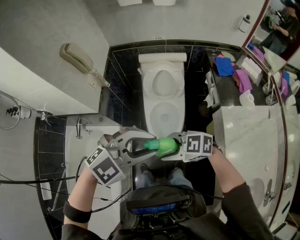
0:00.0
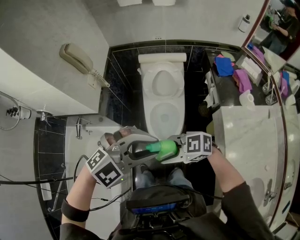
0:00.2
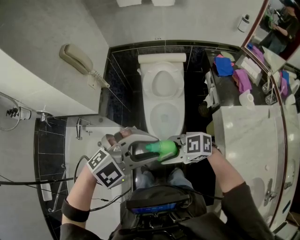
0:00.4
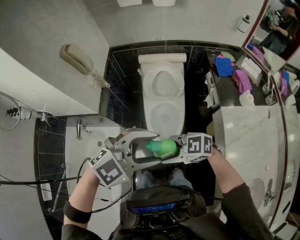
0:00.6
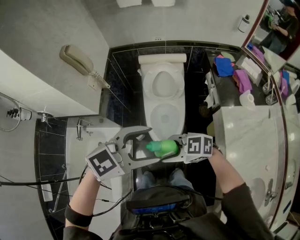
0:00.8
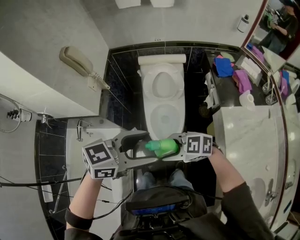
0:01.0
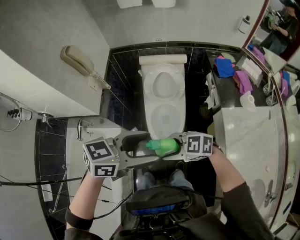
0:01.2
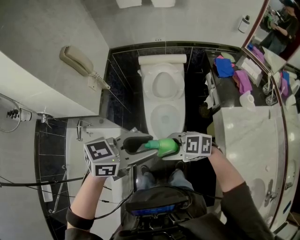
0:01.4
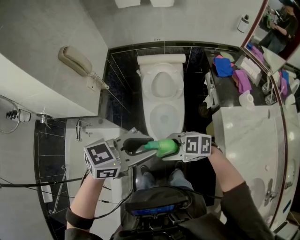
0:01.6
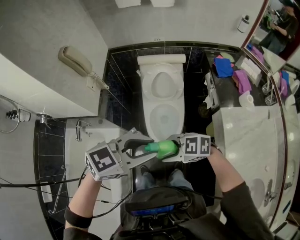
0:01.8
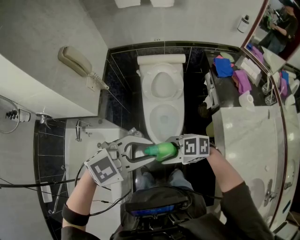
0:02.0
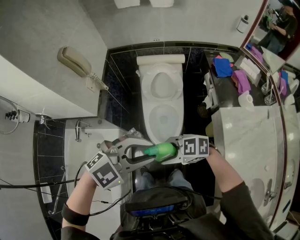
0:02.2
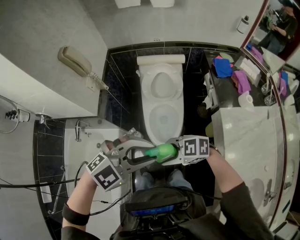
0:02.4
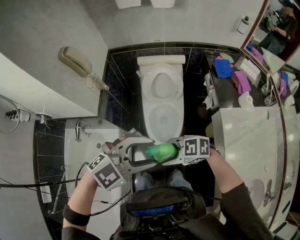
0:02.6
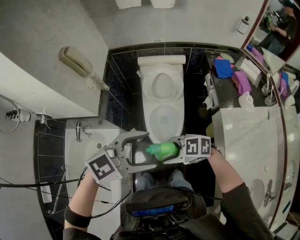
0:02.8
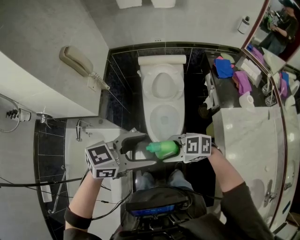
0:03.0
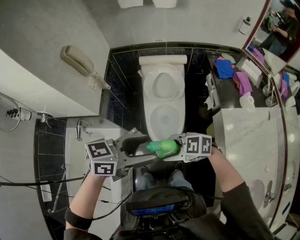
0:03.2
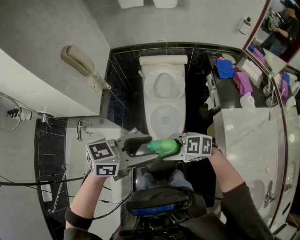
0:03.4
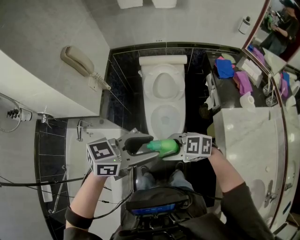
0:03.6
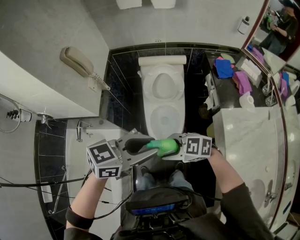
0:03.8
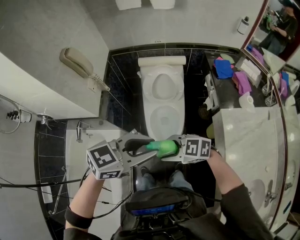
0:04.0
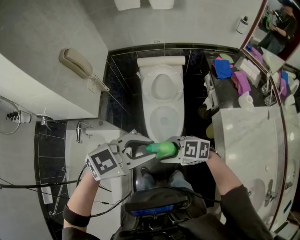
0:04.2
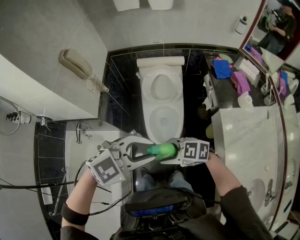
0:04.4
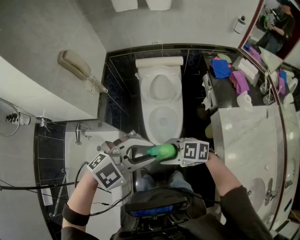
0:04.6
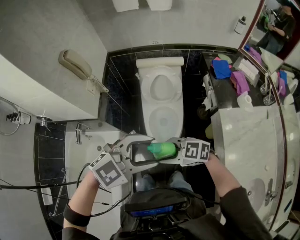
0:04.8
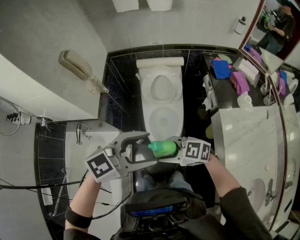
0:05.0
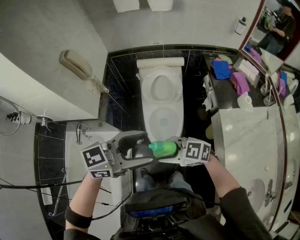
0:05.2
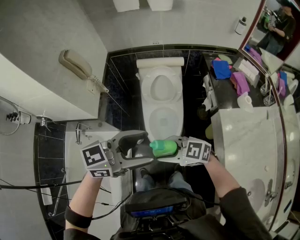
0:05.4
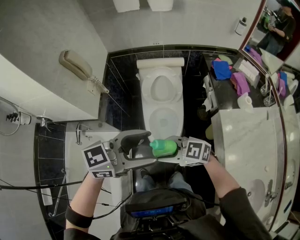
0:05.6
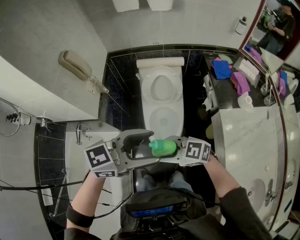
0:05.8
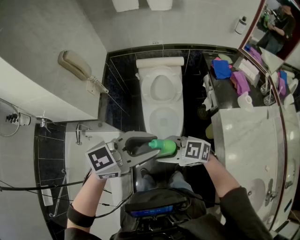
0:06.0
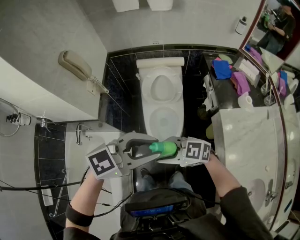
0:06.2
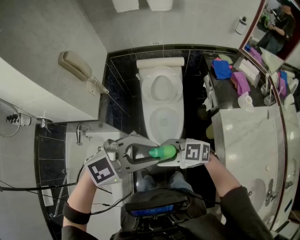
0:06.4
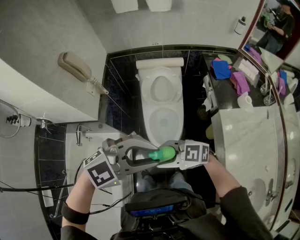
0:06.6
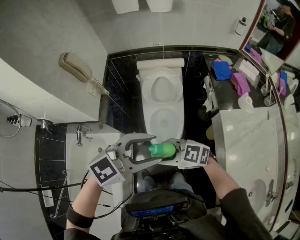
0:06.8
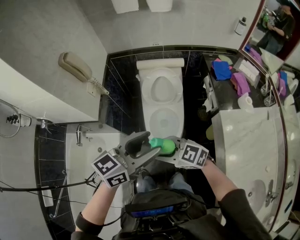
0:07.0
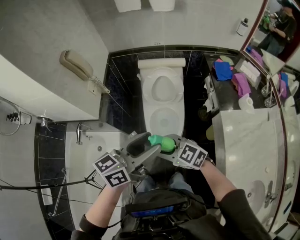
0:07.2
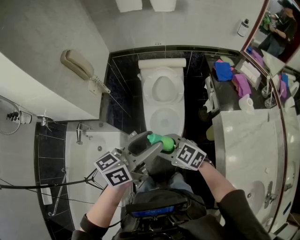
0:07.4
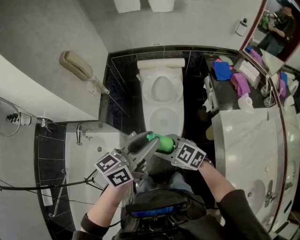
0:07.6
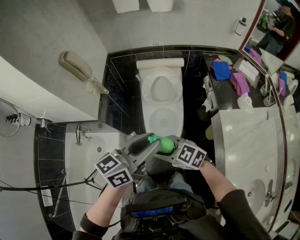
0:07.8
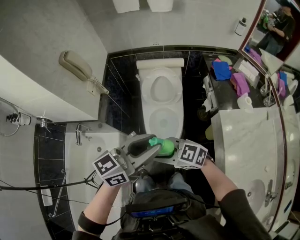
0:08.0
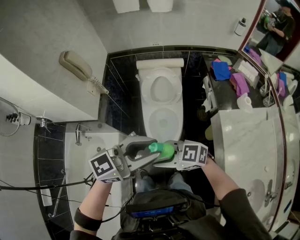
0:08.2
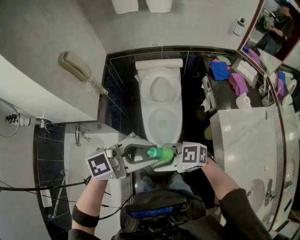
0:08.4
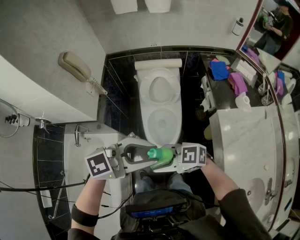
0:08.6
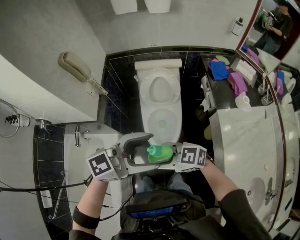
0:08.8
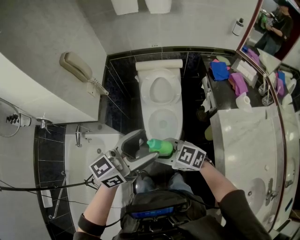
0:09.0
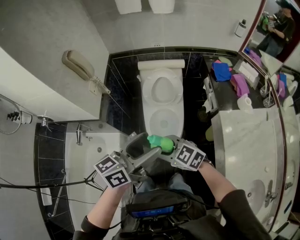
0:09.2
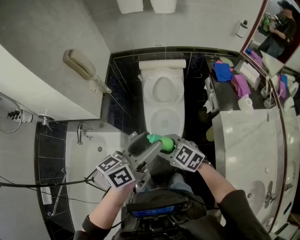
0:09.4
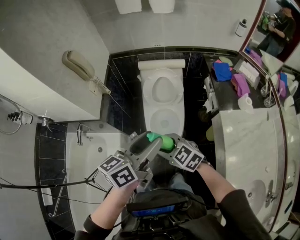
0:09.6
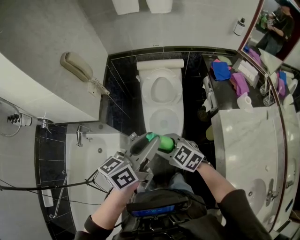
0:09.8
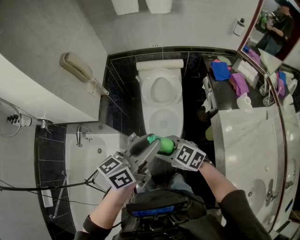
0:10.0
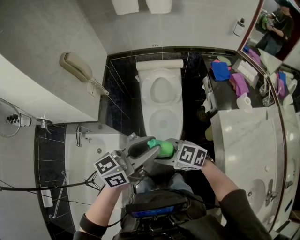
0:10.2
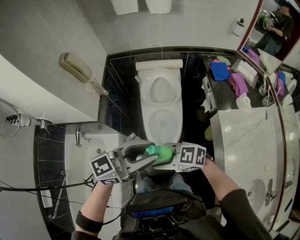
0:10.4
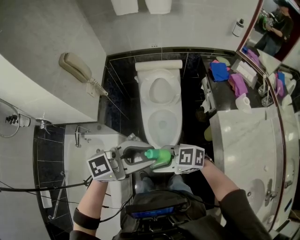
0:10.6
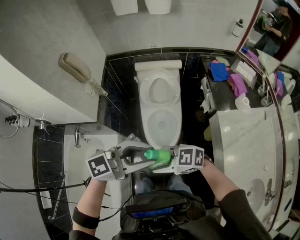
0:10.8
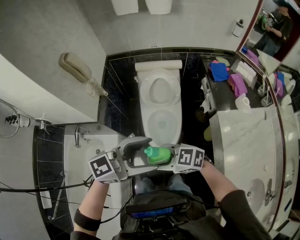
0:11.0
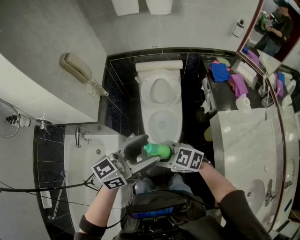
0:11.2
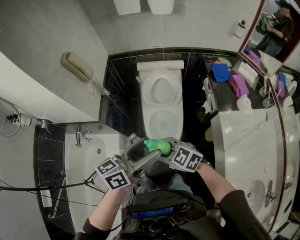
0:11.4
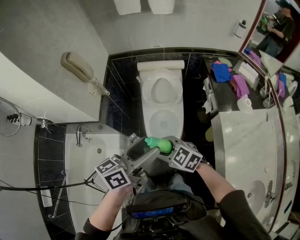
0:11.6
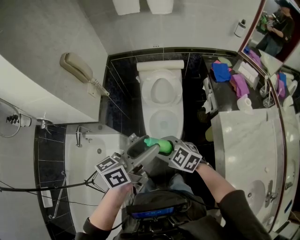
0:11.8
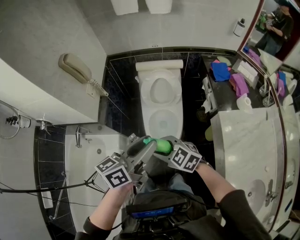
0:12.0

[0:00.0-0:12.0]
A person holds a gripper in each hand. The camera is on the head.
0:00.0 to 0:01.6: The left gripper rolls counterclockwise, seen from behind, by about 40 degrees, and opens and closes again.
0:01.6 to 0:03.0: The left gripper opens.
0:03.0 to 0:04.4: The left gripper changes its angle by about 40 degrees, and closes up.
0:04.4 to 0:06.0: The left gripper swivels roughly 30 degrees, and opens and closes again.
0:06.0 to 0:07.6: The left gripper swivels about 40 degrees.
0:07.6 to 0:09.0: The left gripper opens.
0:09.0 to 0:10.4: The left gripper closes up.
0:10.4 to 0:12.0: The right gripper ends up roughly 10 cm from where it was, and changes its angle by some 30 degrees, while the left gripper changes place by some 5 cm, turns by some 40 degrees, and opens, then closes once more.

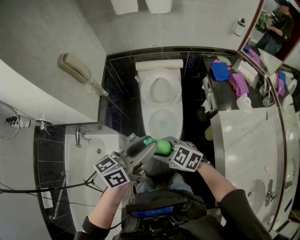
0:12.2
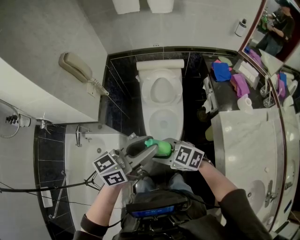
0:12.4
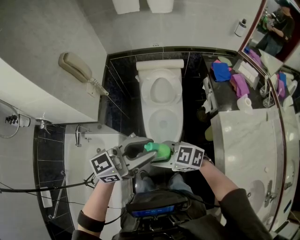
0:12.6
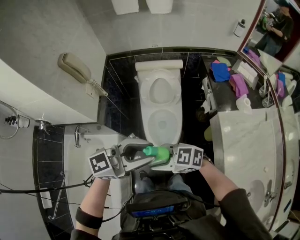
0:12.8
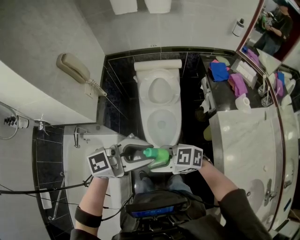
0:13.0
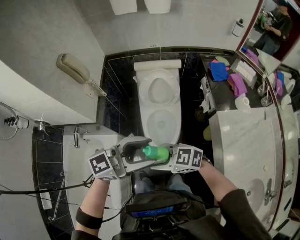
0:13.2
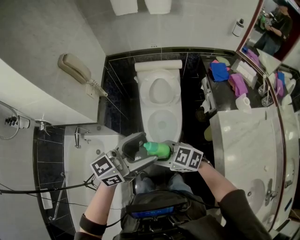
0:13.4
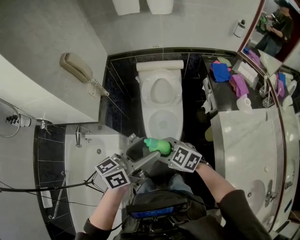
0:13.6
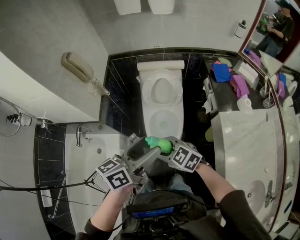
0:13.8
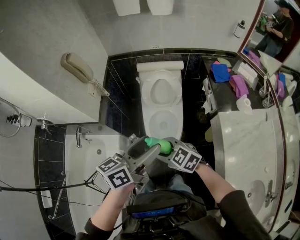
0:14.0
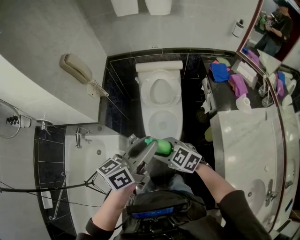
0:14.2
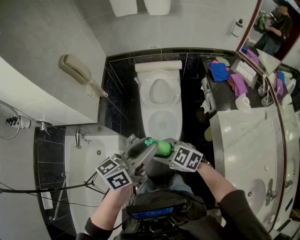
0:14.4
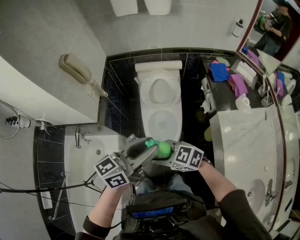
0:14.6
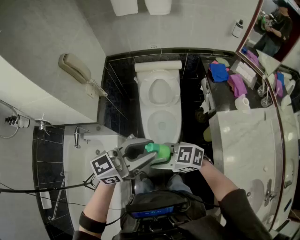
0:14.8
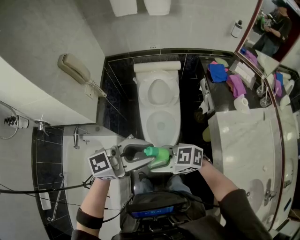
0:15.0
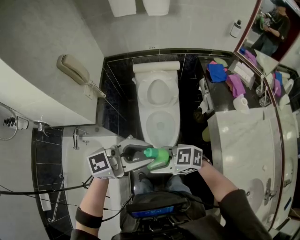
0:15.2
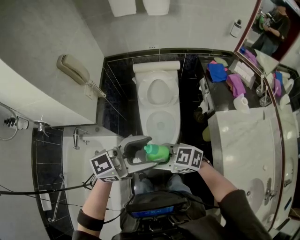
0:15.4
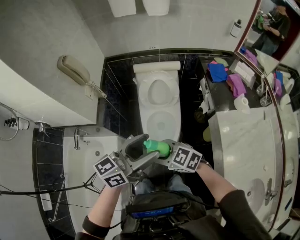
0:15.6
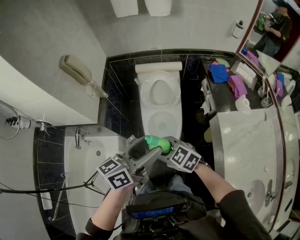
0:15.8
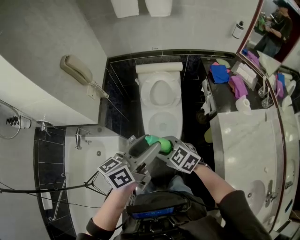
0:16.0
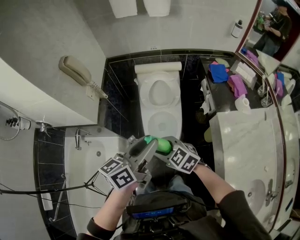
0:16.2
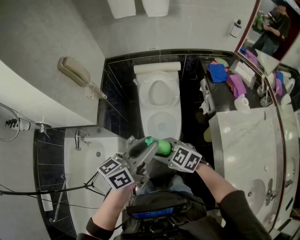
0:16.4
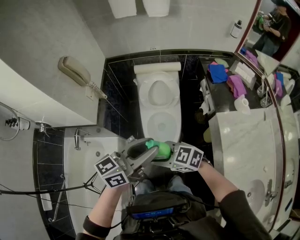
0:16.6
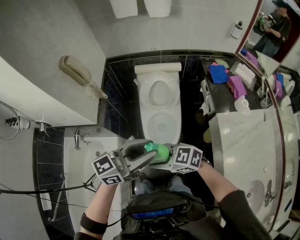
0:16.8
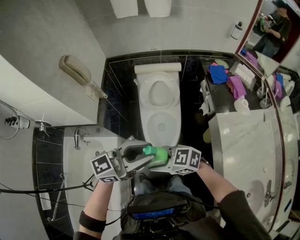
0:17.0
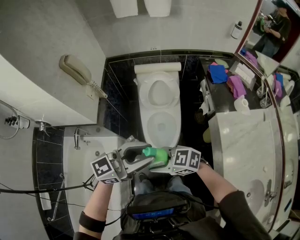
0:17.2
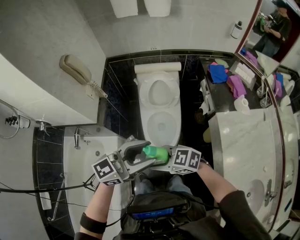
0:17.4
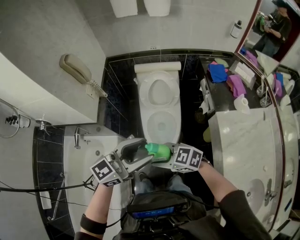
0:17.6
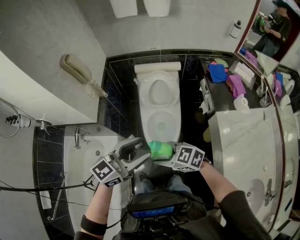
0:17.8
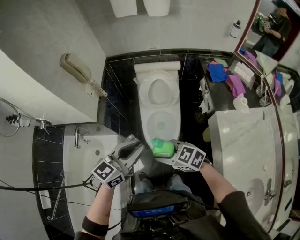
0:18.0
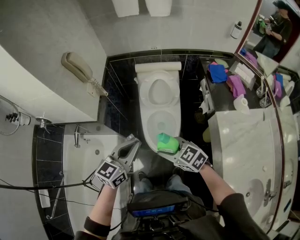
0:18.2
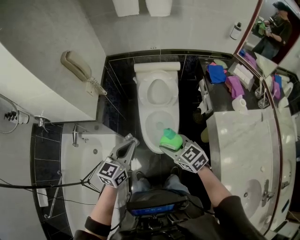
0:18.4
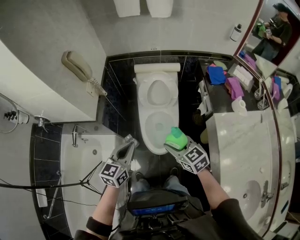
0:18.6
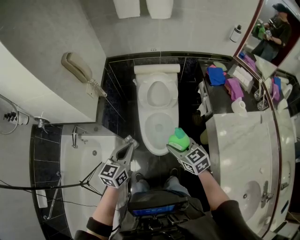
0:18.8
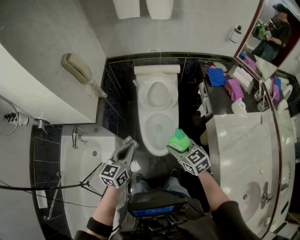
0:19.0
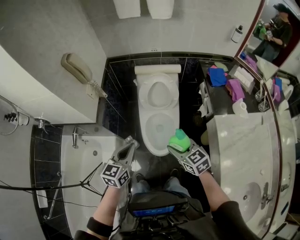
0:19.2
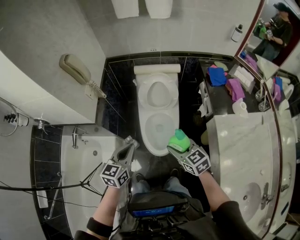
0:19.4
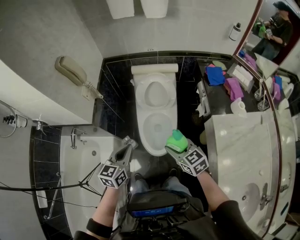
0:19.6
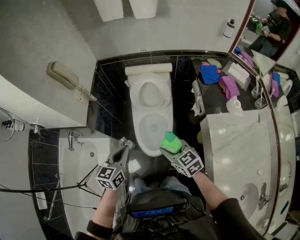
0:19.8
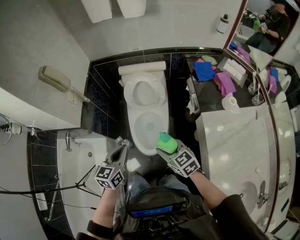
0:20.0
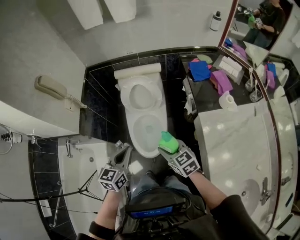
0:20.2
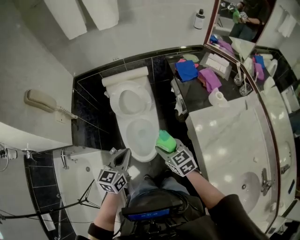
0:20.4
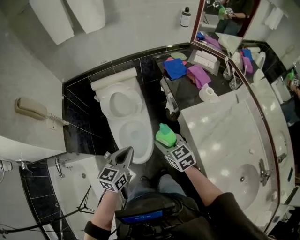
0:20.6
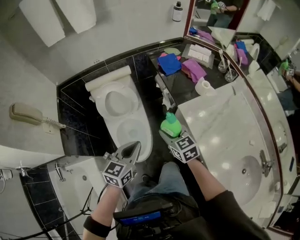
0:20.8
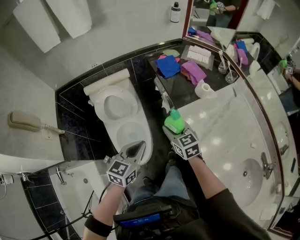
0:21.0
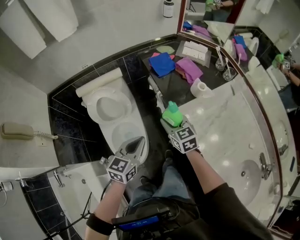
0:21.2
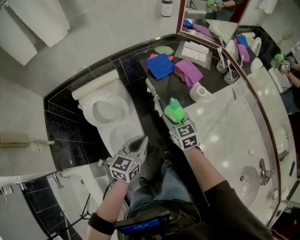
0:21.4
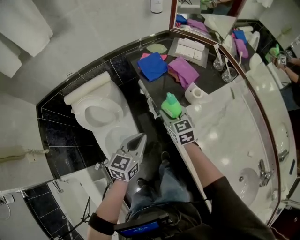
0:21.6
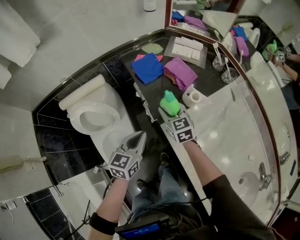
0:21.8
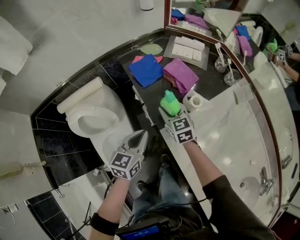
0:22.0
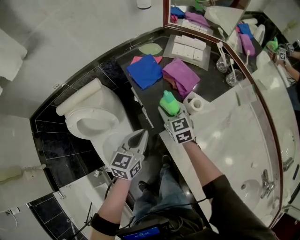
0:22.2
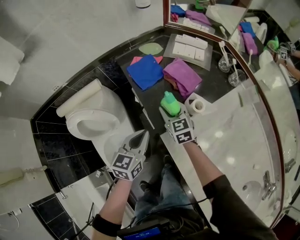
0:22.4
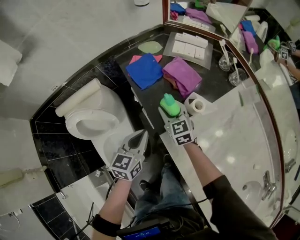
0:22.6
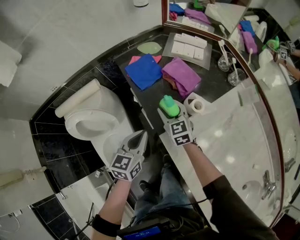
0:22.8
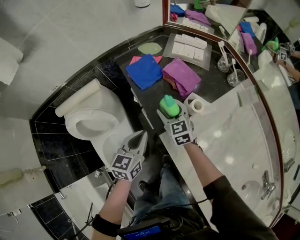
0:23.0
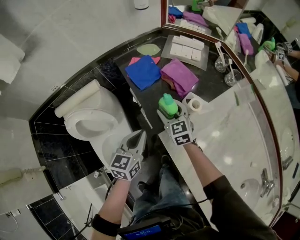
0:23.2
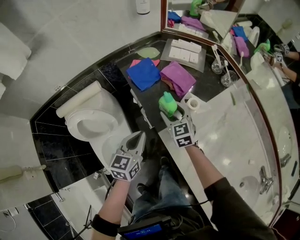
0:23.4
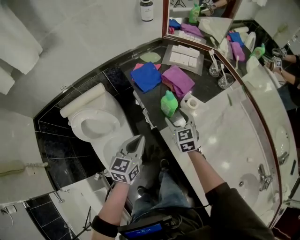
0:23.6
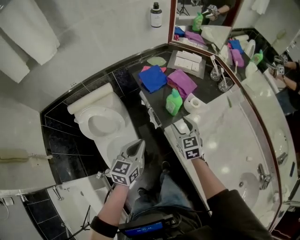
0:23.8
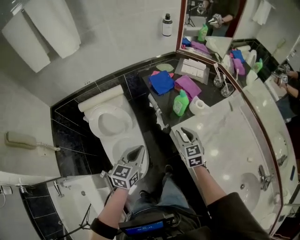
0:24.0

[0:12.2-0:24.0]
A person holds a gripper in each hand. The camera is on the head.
0:12.2 to 0:13.6: The left gripper opens.
0:13.6 to 0:15.2: The left gripper shifts by roughly 5 cm, changes its angle by roughly 50 degrees, and closes up. Meanwhile the right gripper ends up roughly 5 cm from where it was, and swivels some 20 degrees.
0:15.2 to 0:16.6: The left gripper turns by some 30 degrees, and opens and closes again.
0:16.6 to 0:18.2: The right gripper changes place by roughly 5 cm; the left gripper heads downward, covering some 10 cm, and rotates roughly 30 degrees.
0:18.2 to 0:19.6: The right gripper is displaced to the right by some 10 cm, and changes its angle by roughly 20 degrees. The left gripper shifts approximately 5 cm downward.
0:19.6 to 0:21.0: The right gripper moves roughly 25 cm, and swivels about 30 degrees. Meanwhile the left gripper moves about 25 cm, and swivels some 30 degrees.
0:21.0 to 0:22.6: The right gripper travels forward by about 30 cm; the left gripper heads forward, to the right and downward, covering roughly 35 cm.
0:22.6 to 0:24.0: The right gripper is displaced backward and upward by roughly 25 cm, and opens and closes again. The left gripper goes some 25 cm backward, to the left and upward.
